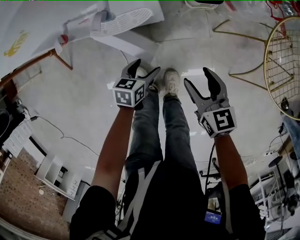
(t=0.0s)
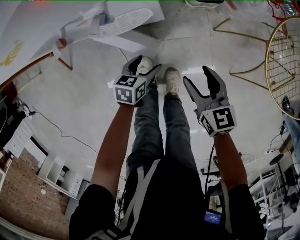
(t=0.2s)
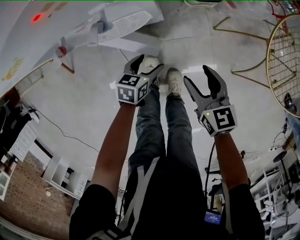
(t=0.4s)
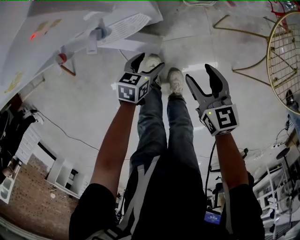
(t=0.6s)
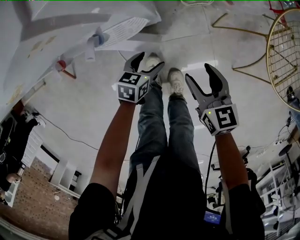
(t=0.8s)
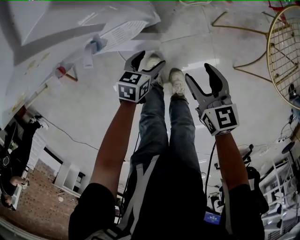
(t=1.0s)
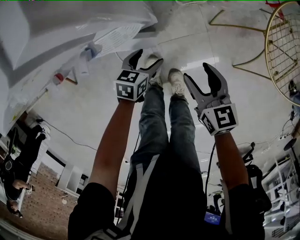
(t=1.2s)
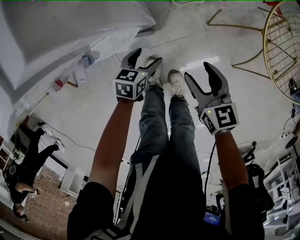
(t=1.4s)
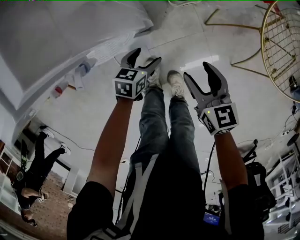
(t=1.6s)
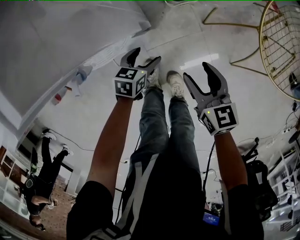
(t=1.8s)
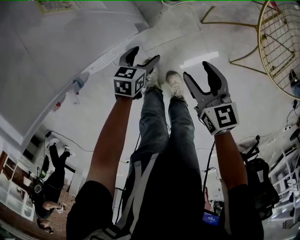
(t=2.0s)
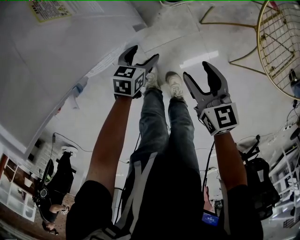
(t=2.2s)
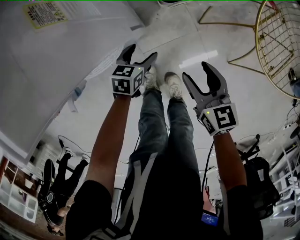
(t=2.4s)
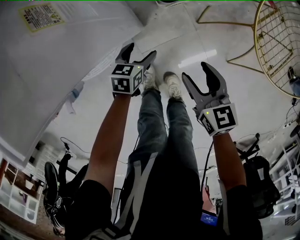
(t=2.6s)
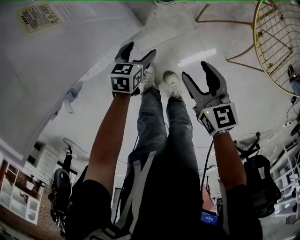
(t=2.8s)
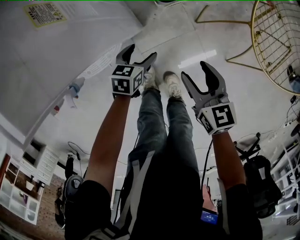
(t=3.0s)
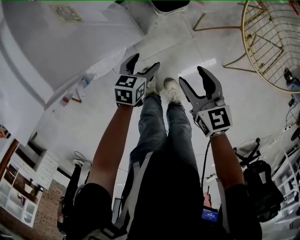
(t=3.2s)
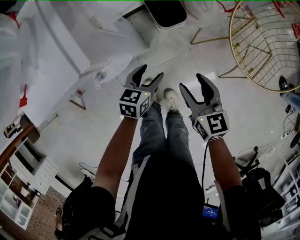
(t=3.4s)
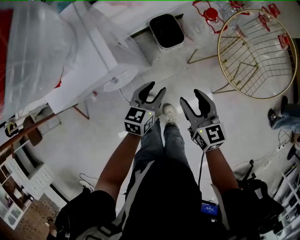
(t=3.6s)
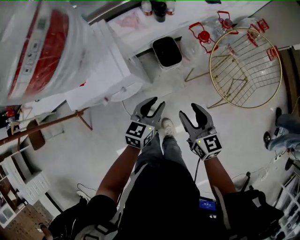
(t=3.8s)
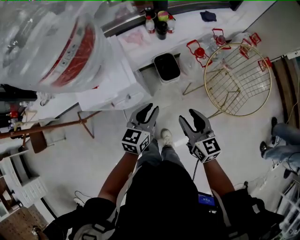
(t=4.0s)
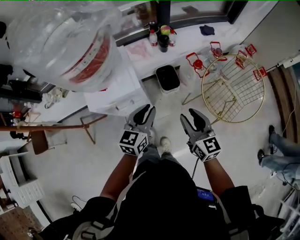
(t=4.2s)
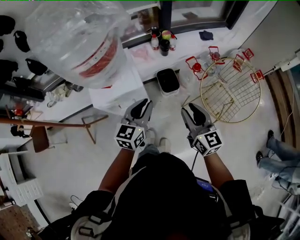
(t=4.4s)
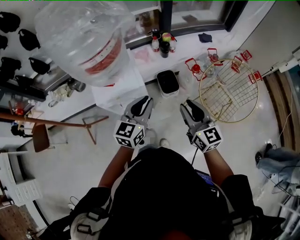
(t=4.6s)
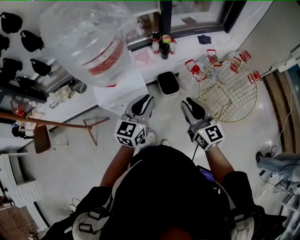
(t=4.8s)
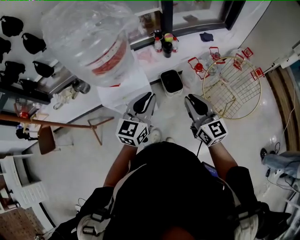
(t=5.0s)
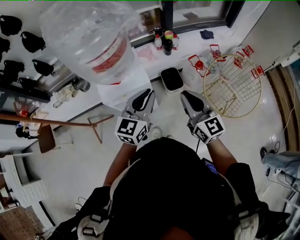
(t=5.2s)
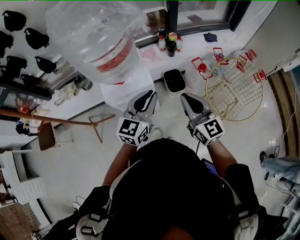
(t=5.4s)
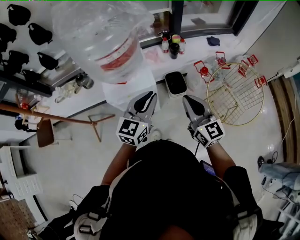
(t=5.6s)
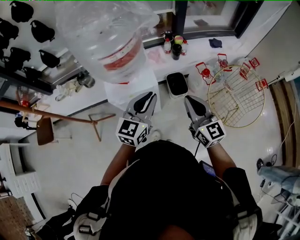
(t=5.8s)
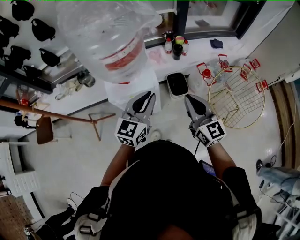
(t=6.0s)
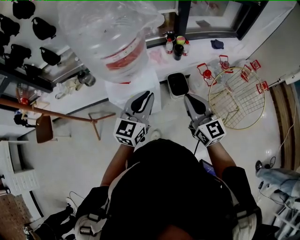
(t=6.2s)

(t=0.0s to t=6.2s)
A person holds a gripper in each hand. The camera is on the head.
t=0.0s - t=1.6s: The right gripper travels forward by approximately 5 cm; the left gripper goes roughly 10 cm forward.
t=1.6s - t=3.2s: The left gripper goes some 5 cm upward.
t=3.2s - t=4.6s: Both grippers travel together upward, approximately 50 cm. The right gripper changes its angle by about 30 degrees, and closes up; the left gripper tips its fingers upward by approximately 40 degrees, and closes up.
t=4.6s - t=6.2s: Both grippers move to the left, approximately 5 cm.

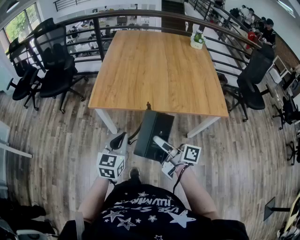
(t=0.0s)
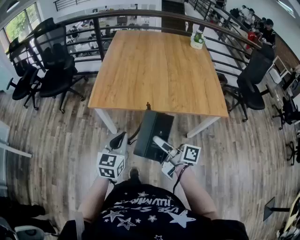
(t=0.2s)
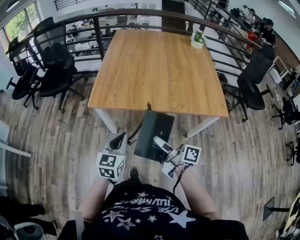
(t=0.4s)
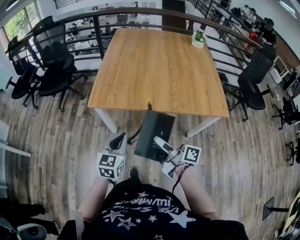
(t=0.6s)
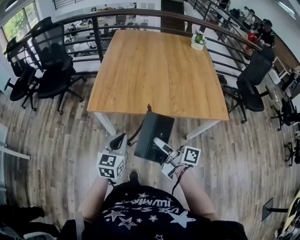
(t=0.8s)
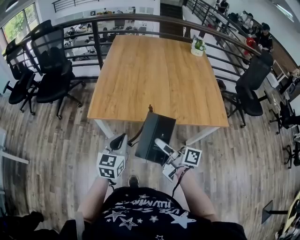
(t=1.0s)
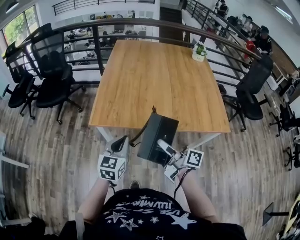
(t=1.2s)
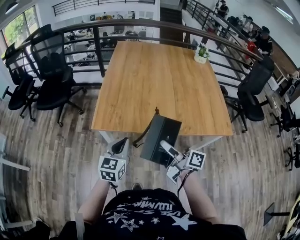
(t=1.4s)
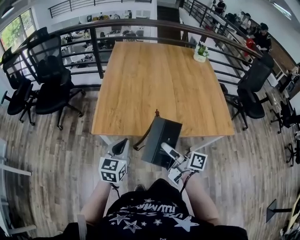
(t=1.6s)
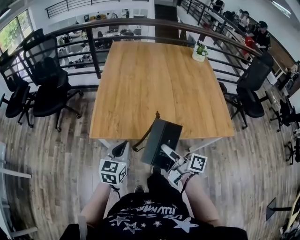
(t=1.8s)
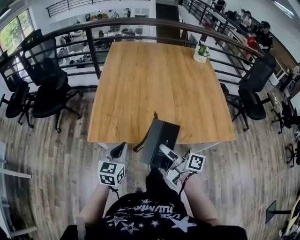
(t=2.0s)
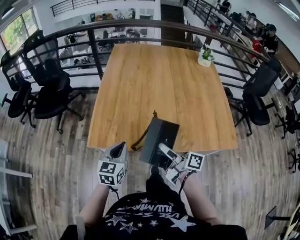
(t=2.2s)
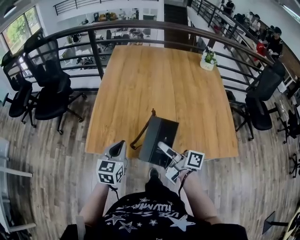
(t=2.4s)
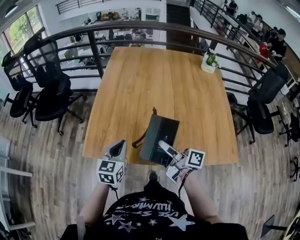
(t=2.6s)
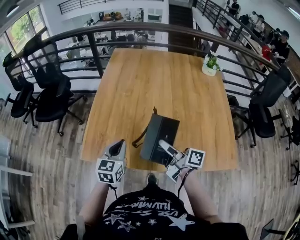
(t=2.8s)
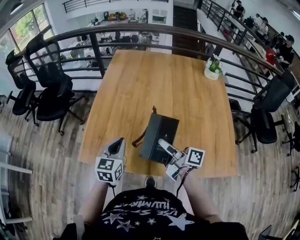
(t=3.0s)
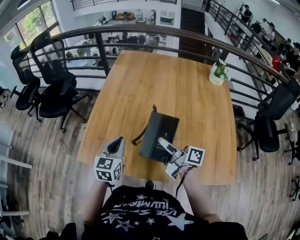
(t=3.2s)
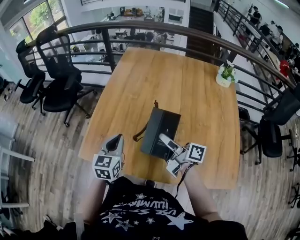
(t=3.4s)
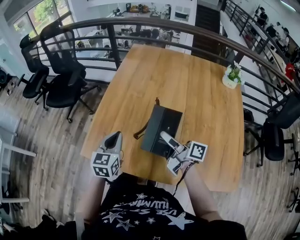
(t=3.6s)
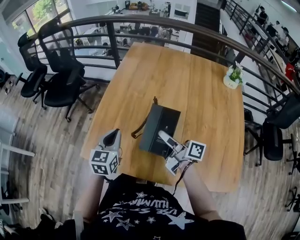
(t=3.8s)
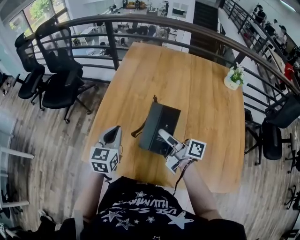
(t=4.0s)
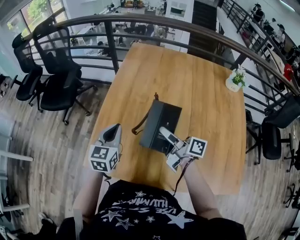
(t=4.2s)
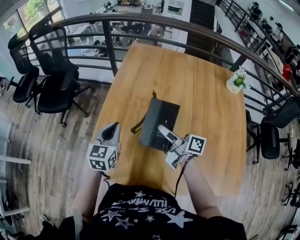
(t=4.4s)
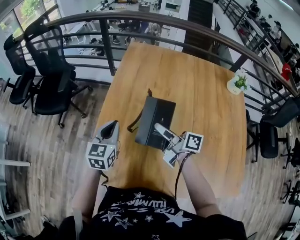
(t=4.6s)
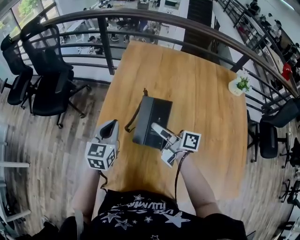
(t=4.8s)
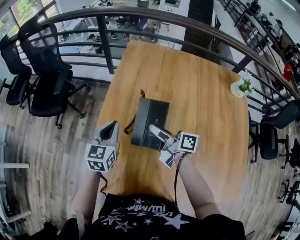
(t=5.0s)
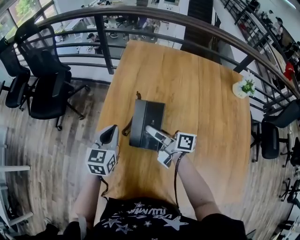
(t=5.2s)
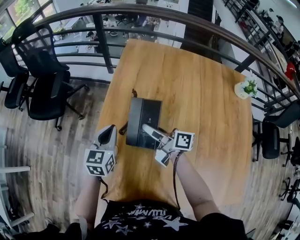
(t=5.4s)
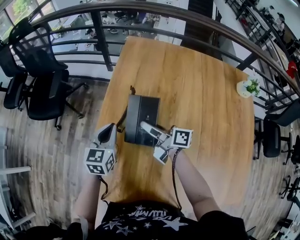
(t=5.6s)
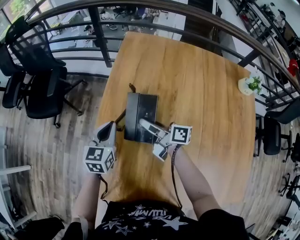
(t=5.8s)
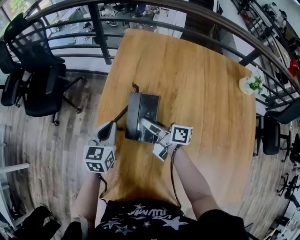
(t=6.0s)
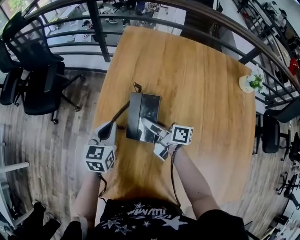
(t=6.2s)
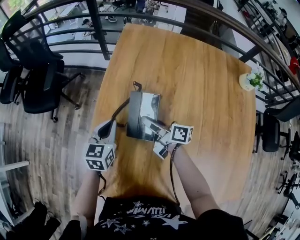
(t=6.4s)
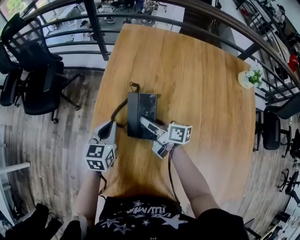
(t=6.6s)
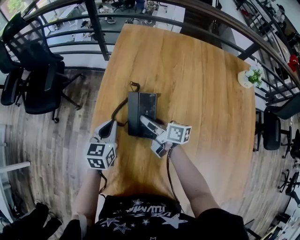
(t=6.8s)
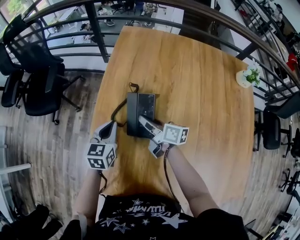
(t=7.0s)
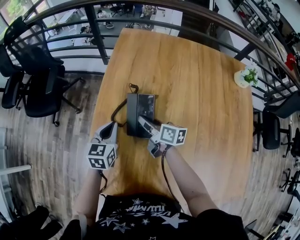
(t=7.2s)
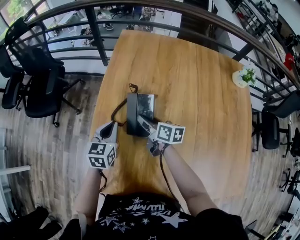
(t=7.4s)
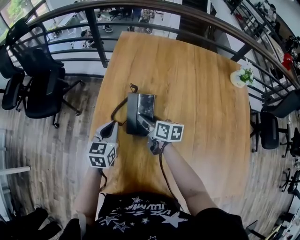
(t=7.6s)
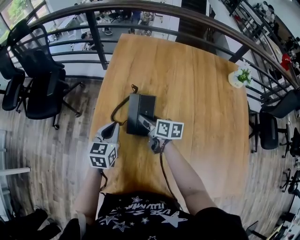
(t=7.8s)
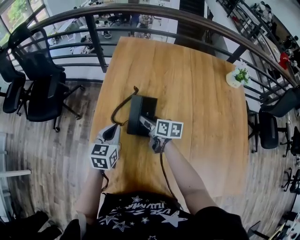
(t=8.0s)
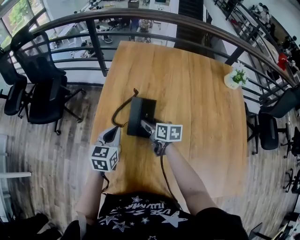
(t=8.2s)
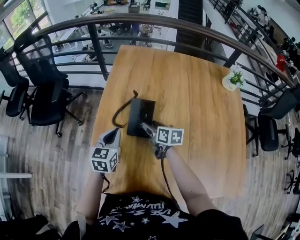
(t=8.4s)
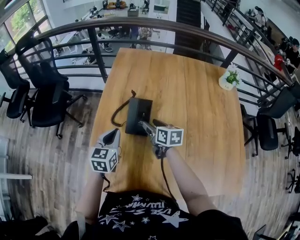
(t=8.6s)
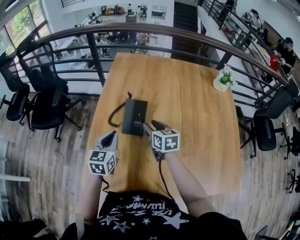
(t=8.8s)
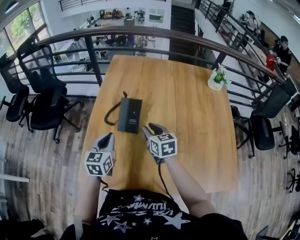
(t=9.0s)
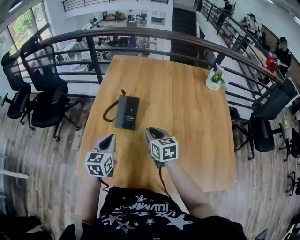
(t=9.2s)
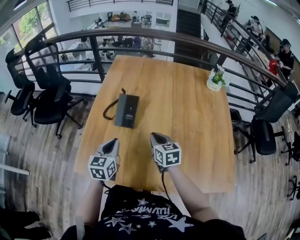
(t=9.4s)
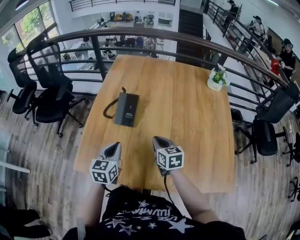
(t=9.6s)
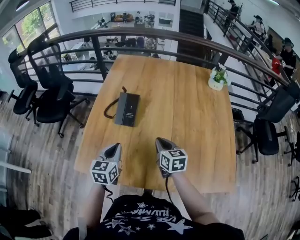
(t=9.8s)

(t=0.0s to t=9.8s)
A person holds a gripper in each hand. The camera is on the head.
t=0.0s - t=1.4s: Both grippers move forward, about 10 cm.
t=1.4s - t=2.8s: Both grippers travel together forward and to the right, roughly 25 cm.
t=2.8s - t=4.2s: Both grippers move forward, approximately 15 cm.
t=4.2s - t=5.6s: Both grippers travel together forward, roughly 20 cm.
t=5.6s - t=7.0s: The right gripper heads downward, covering some 5 cm.
t=7.0s - t=8.4s: The right gripper moves about 5 cm, changes its angle by some 30 degrees, and opens its fingers. The left gripper is displaced backward by roughly 5 cm.
t=8.4s - t=9.8s: The grippers both shift backward and to the right by about 20 cm. The right gripper closes.

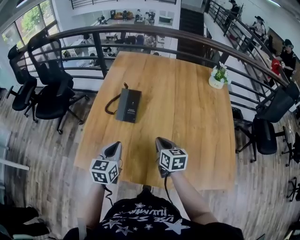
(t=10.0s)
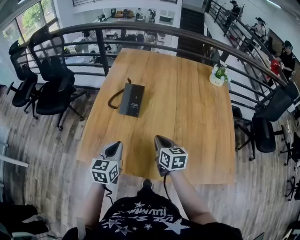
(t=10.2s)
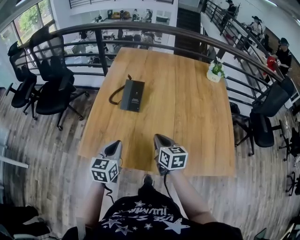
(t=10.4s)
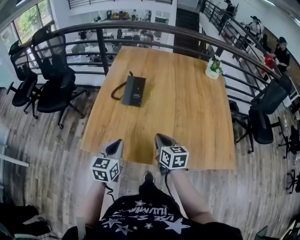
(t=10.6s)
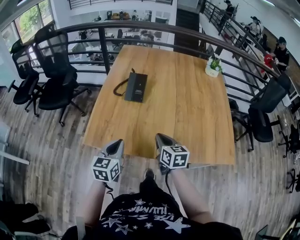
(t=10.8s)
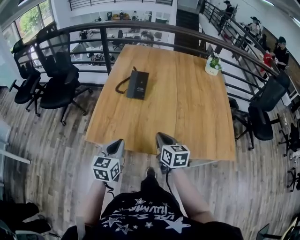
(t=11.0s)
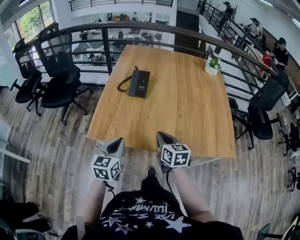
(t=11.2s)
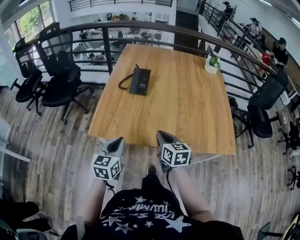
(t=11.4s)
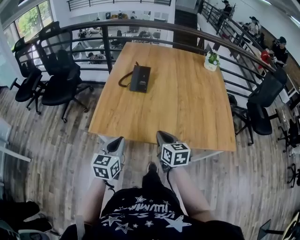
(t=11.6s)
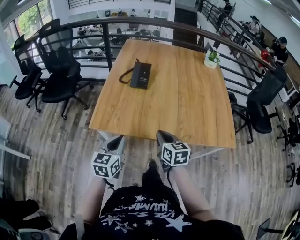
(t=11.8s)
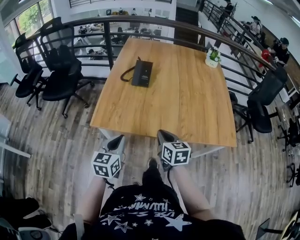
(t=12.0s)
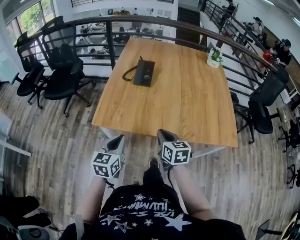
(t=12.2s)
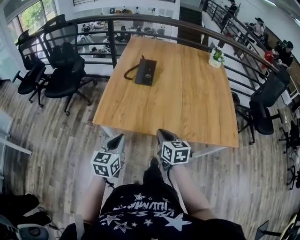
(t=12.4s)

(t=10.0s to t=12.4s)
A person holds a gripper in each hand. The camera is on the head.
t=10.0s - t=11.2s: The grippers both shift backward by roughly 20 cm.
t=11.2s - t=12.4s: Both grippers travel together backward, approximately 5 cm.

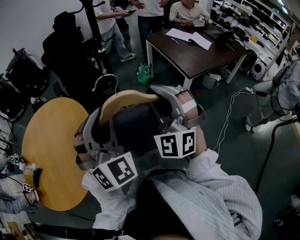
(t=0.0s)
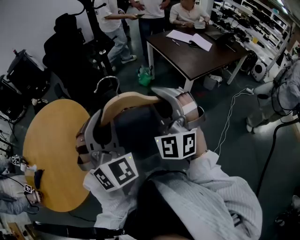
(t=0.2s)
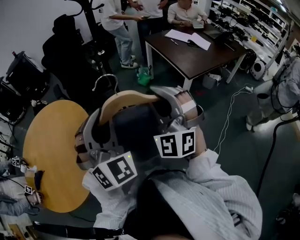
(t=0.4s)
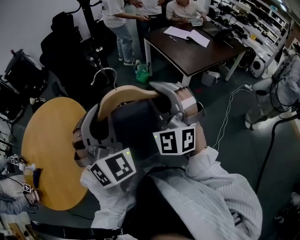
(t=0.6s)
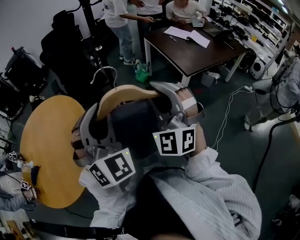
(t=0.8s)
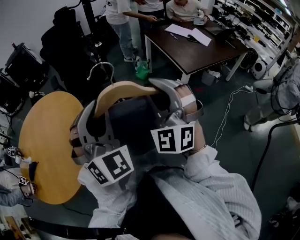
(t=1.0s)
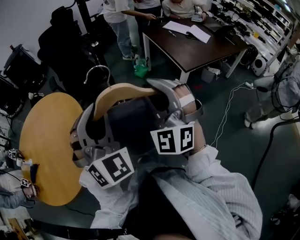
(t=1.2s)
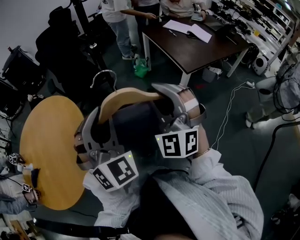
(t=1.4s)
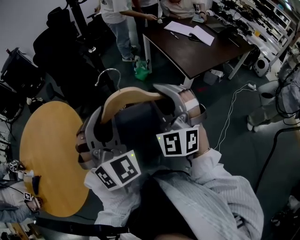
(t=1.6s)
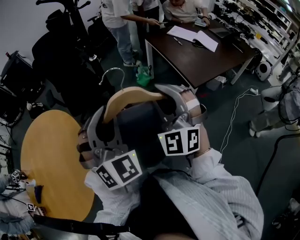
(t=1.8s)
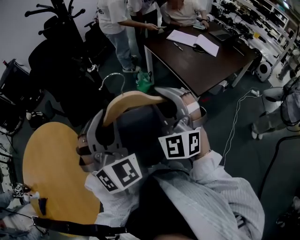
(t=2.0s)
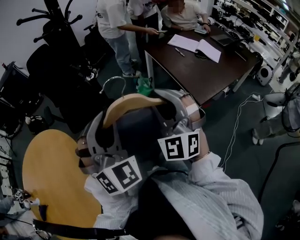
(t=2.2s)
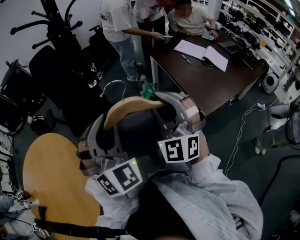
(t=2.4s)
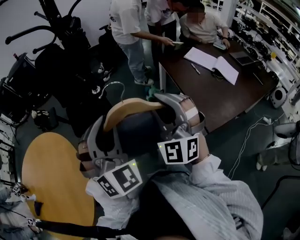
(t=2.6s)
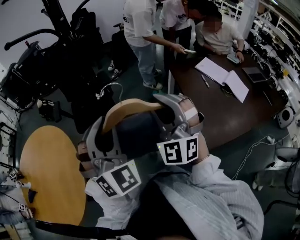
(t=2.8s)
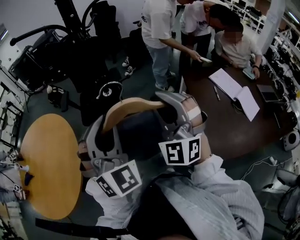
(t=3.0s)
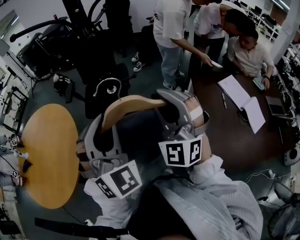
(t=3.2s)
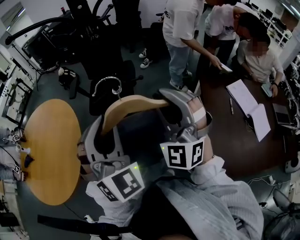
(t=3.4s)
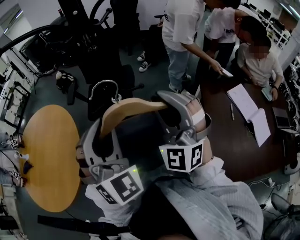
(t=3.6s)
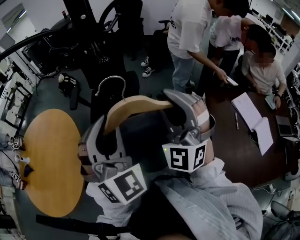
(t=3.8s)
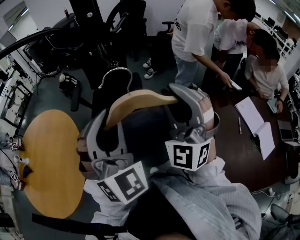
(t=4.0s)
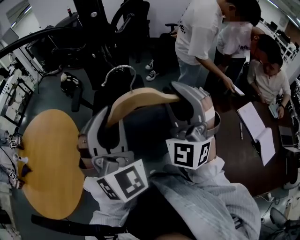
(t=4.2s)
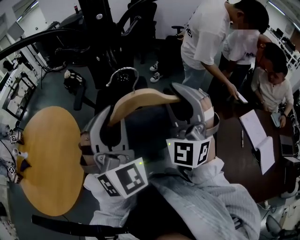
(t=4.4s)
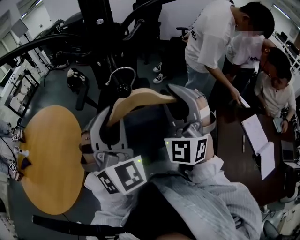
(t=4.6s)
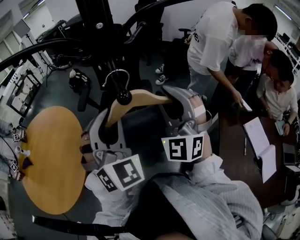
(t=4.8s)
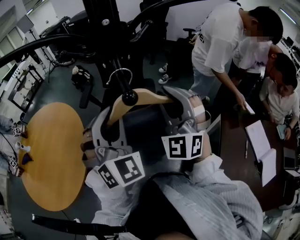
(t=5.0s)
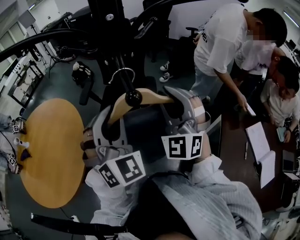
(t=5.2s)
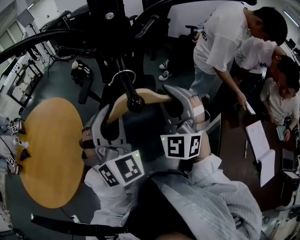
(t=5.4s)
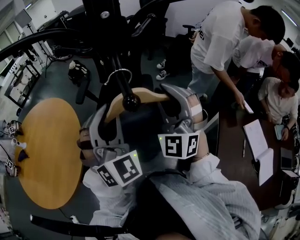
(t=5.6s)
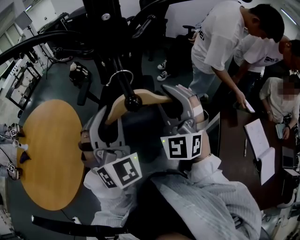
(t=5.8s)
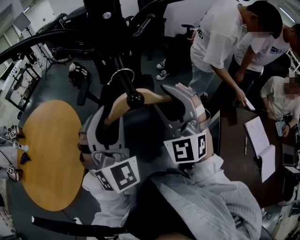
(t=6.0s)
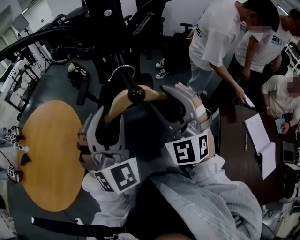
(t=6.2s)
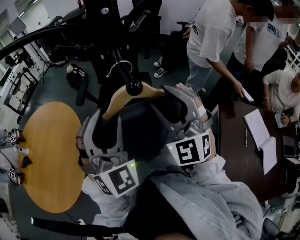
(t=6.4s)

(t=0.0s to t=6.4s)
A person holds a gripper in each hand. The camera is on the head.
t=0.0s - t=1.6s: Both grippers move forward and to the right, approximately 10 cm.
t=1.6s - t=3.2s: Both grippers are carried approximately 40 cm. The left gripper swivels roughly 30 degrees. Meanwhile the right gripper rotates some 30 degrees.
t=3.2s - t=4.8s: Both grippers travel together forward, approximately 25 cm.
t=4.8s - t=6.4s: The right gripper opens its fingers.
